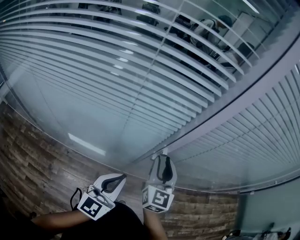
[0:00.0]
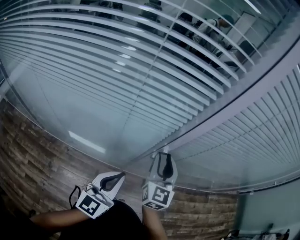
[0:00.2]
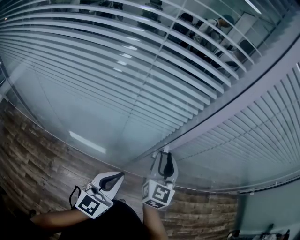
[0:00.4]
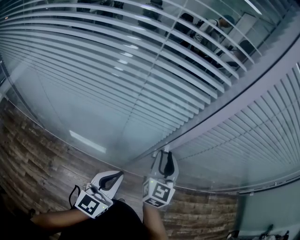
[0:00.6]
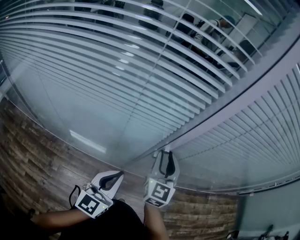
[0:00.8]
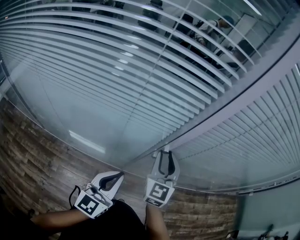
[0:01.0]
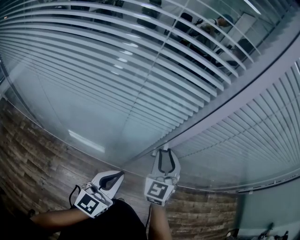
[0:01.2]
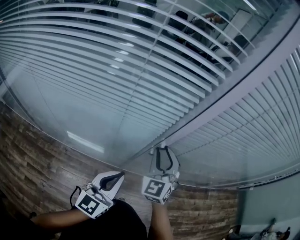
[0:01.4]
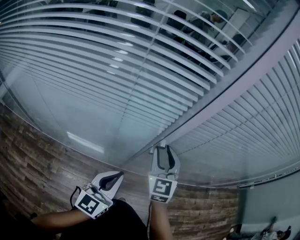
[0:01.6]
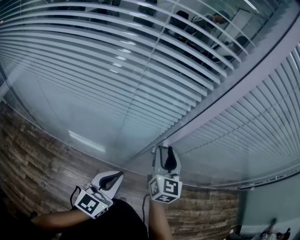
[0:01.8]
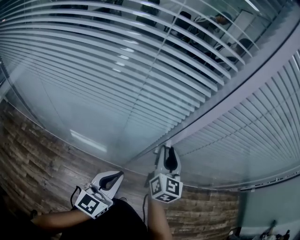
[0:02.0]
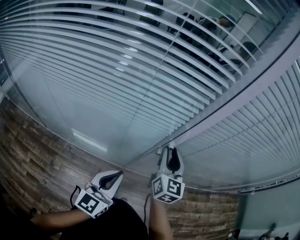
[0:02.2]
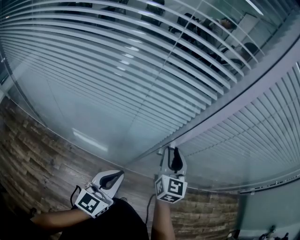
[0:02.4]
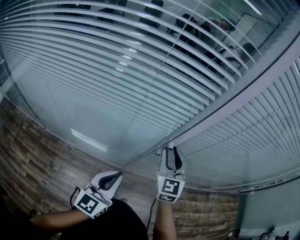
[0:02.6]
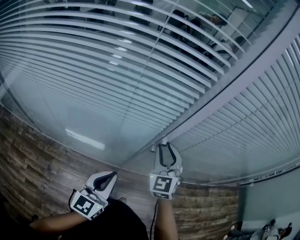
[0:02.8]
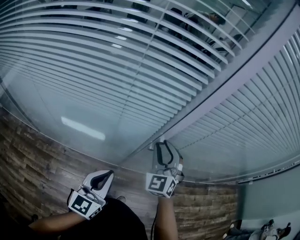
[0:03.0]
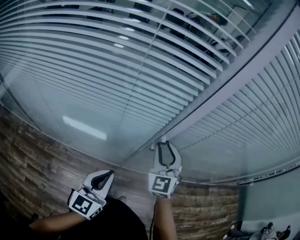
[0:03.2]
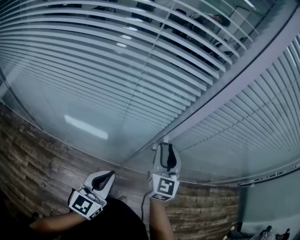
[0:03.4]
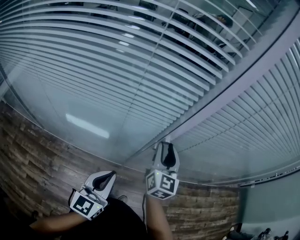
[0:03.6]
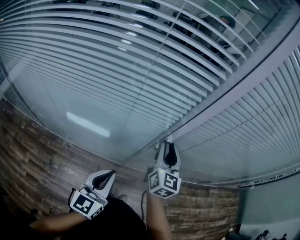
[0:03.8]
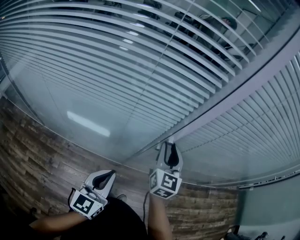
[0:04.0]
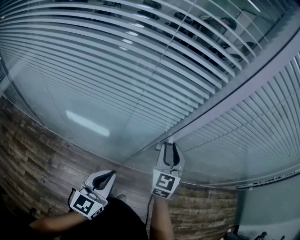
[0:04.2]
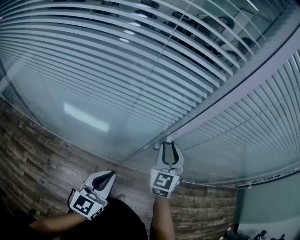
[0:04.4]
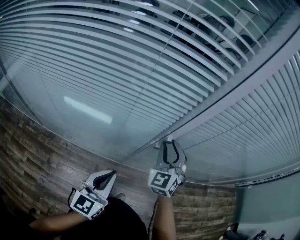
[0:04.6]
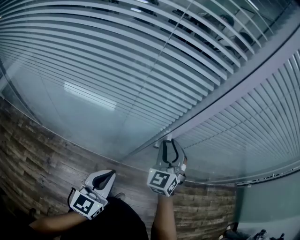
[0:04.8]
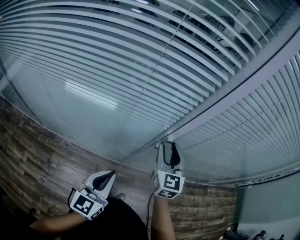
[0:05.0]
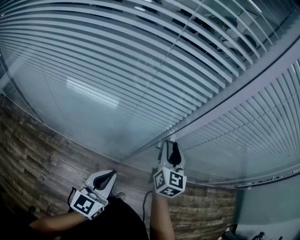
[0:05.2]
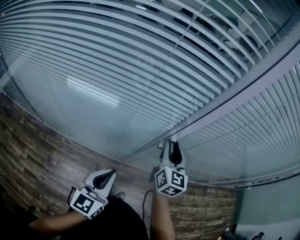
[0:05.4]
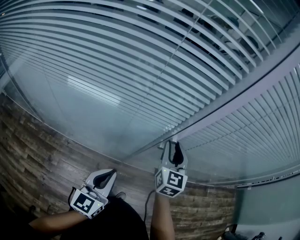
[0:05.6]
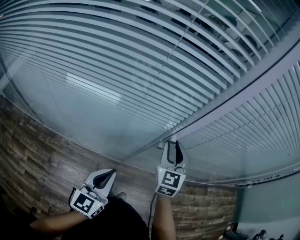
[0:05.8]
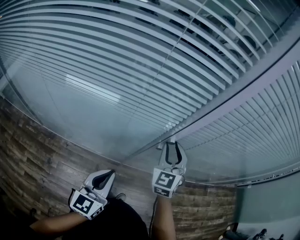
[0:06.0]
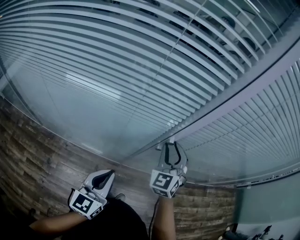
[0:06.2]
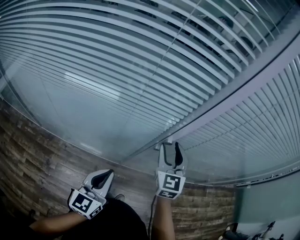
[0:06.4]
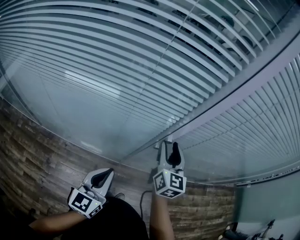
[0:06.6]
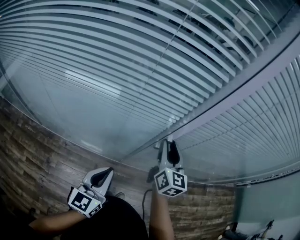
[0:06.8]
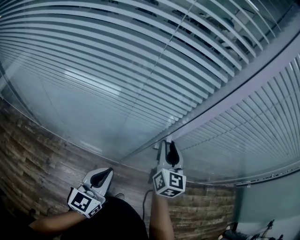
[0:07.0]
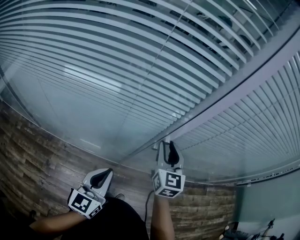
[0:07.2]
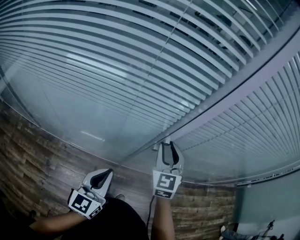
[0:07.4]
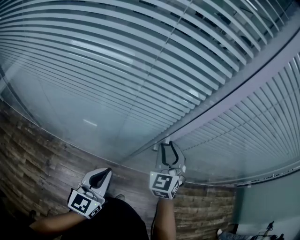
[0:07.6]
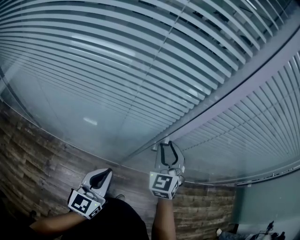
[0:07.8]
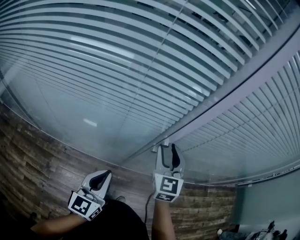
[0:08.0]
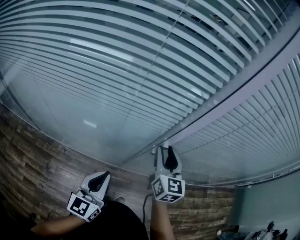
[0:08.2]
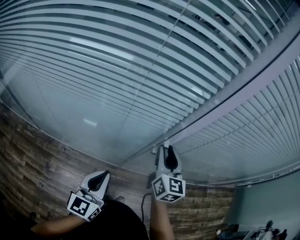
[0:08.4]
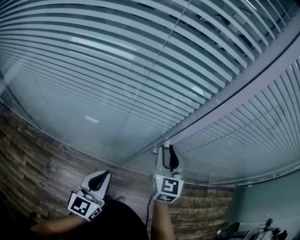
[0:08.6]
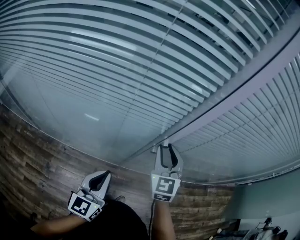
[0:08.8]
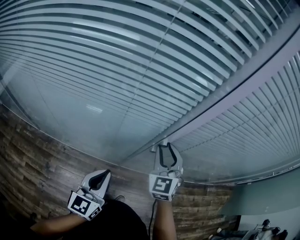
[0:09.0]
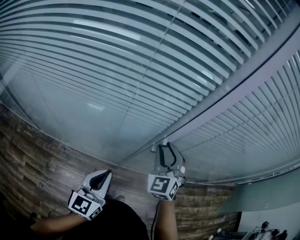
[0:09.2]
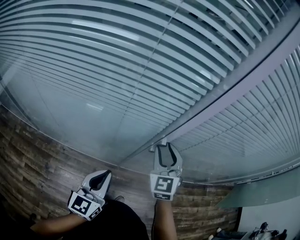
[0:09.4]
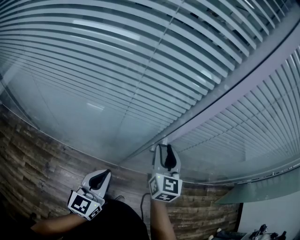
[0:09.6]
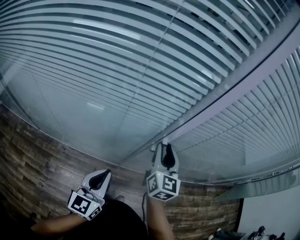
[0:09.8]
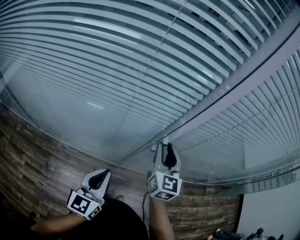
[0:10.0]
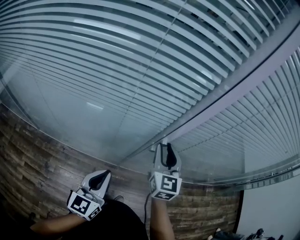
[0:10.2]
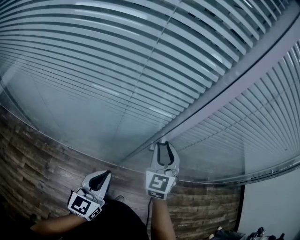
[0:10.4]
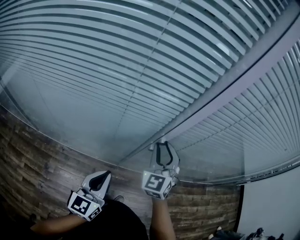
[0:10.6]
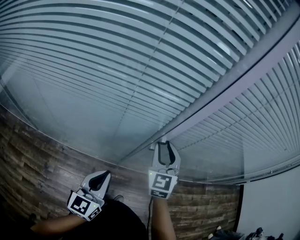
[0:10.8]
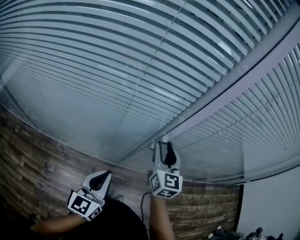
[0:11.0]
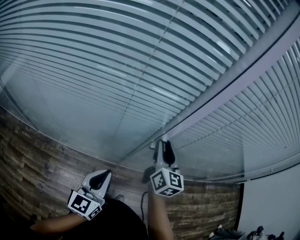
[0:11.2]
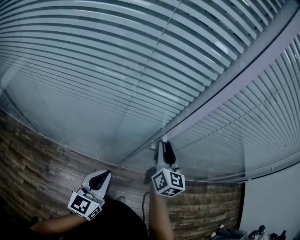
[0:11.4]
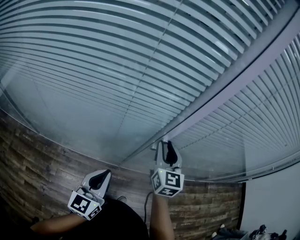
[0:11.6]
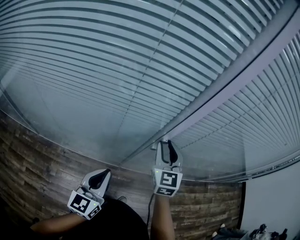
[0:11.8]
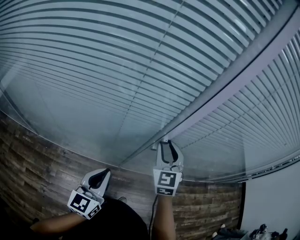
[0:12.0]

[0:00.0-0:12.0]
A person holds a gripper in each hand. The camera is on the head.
0:01.6 to 0:03.0: The right gripper swivels roughly 20 degrees.

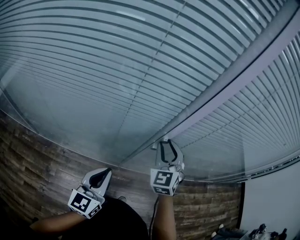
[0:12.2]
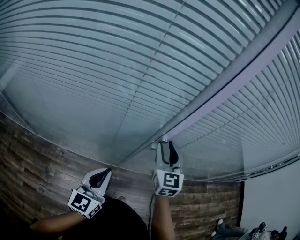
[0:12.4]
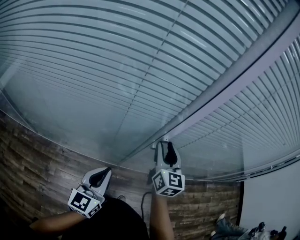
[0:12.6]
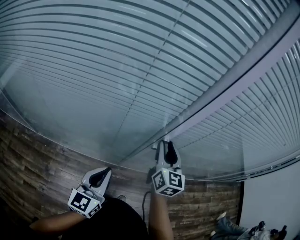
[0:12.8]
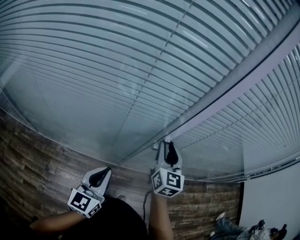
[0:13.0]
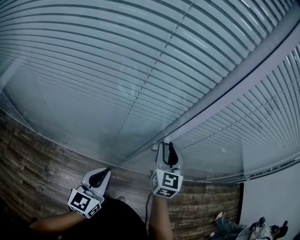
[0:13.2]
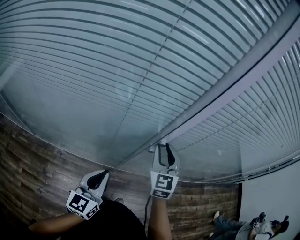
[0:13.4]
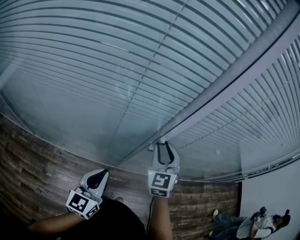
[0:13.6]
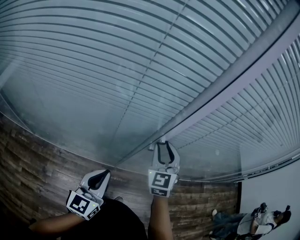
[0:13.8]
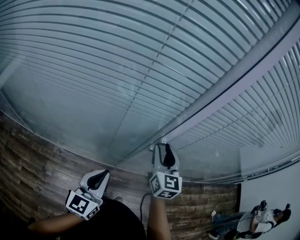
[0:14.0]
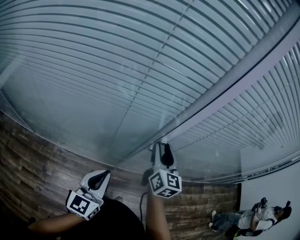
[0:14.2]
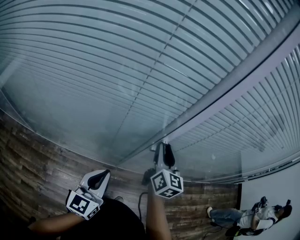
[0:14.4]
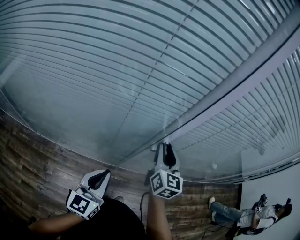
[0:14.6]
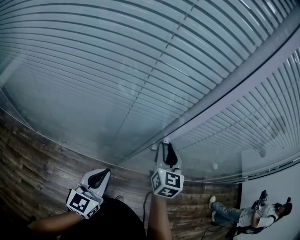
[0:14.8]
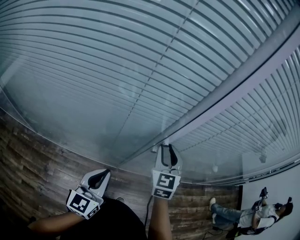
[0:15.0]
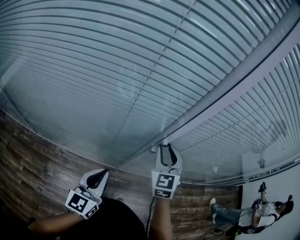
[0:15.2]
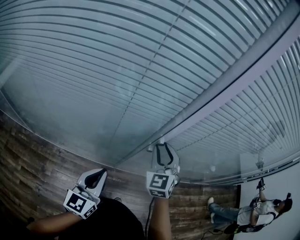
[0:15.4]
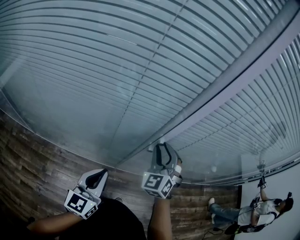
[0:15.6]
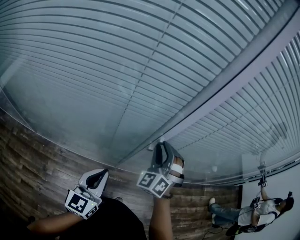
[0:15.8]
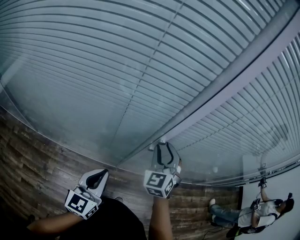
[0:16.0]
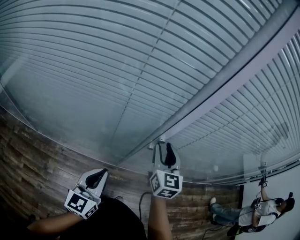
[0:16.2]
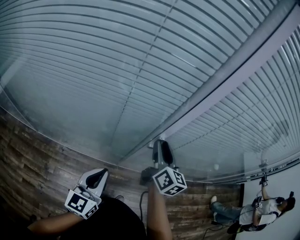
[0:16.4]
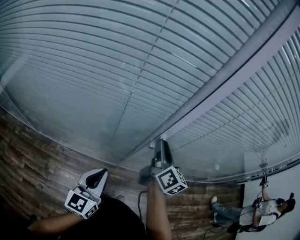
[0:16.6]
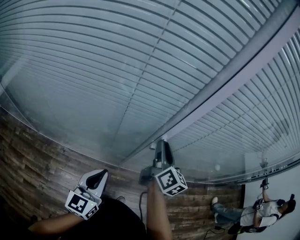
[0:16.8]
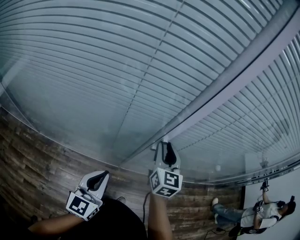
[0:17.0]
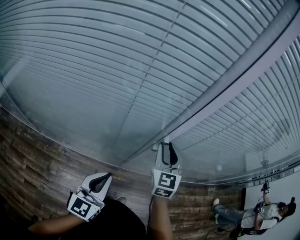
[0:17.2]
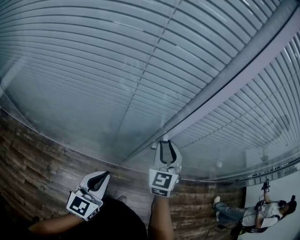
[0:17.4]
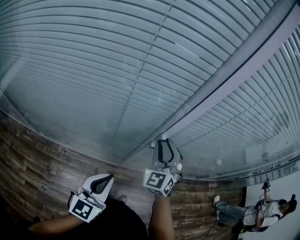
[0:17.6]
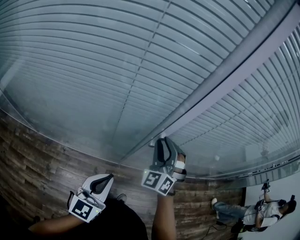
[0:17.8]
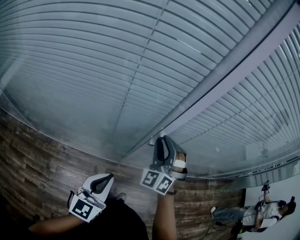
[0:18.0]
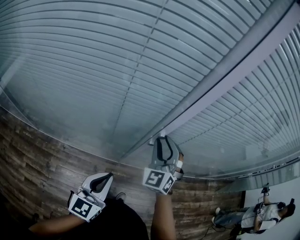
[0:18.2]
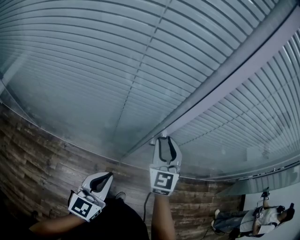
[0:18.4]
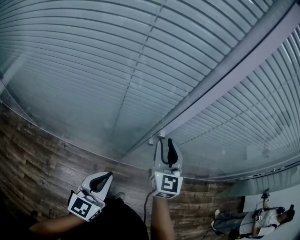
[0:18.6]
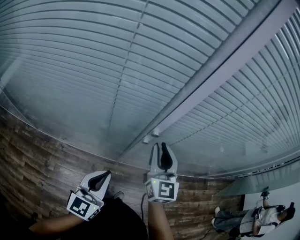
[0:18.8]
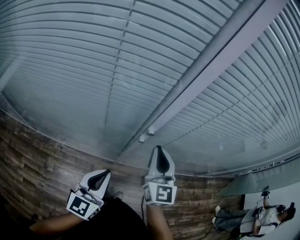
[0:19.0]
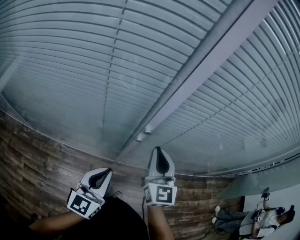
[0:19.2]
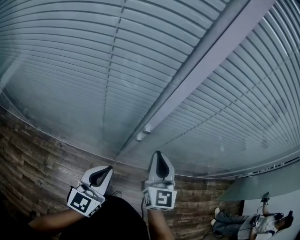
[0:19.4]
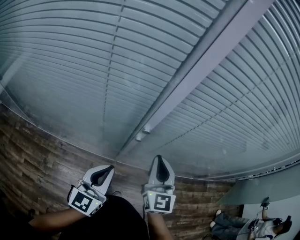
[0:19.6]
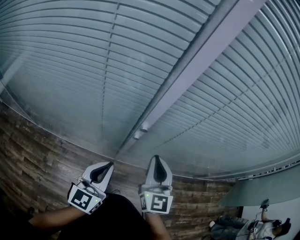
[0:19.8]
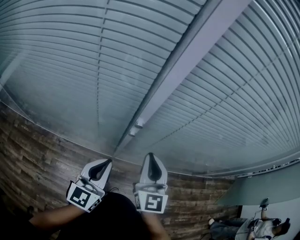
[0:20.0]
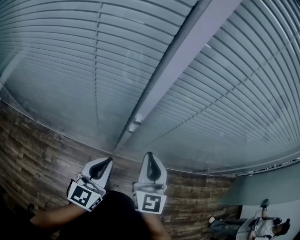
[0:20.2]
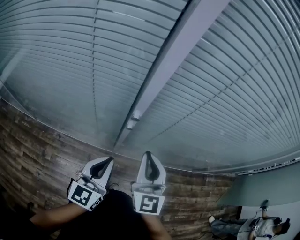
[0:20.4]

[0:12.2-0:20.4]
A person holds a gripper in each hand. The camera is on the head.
0:15.4 to 0:17.2: The right gripper swivels some 20 degrees.
0:17.2 to 0:18.8: The right gripper changes place by roughly 5 cm.
0:18.8 to 0:20.4: The right gripper travels backward and to the right by some 10 cm, and closes up. The left gripper goes roughly 10 cm to the right.

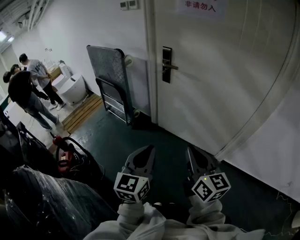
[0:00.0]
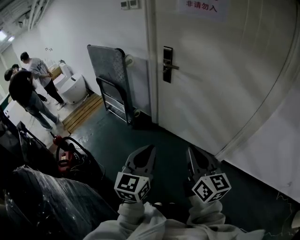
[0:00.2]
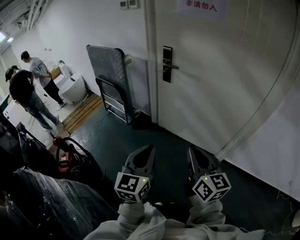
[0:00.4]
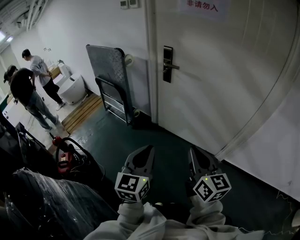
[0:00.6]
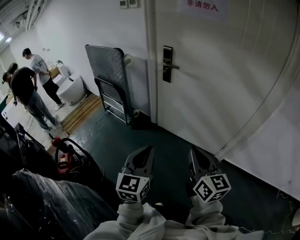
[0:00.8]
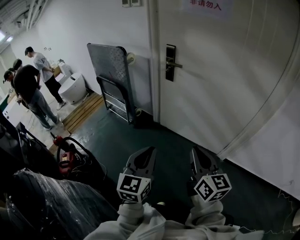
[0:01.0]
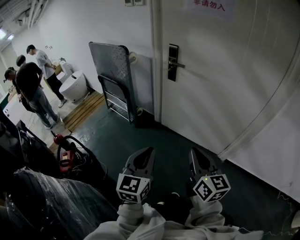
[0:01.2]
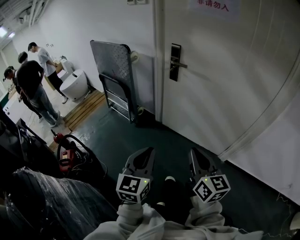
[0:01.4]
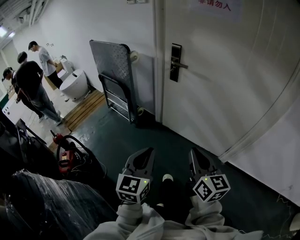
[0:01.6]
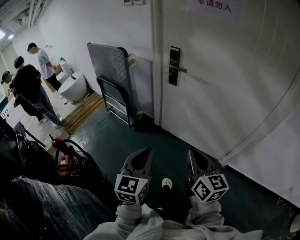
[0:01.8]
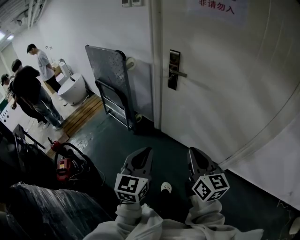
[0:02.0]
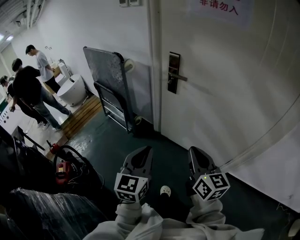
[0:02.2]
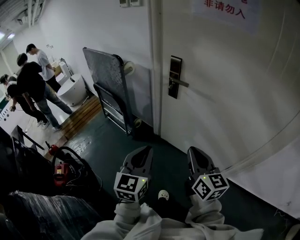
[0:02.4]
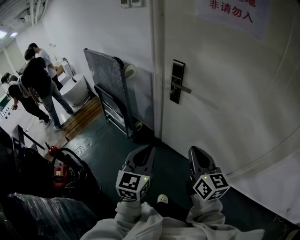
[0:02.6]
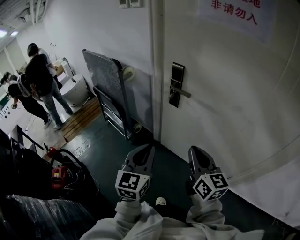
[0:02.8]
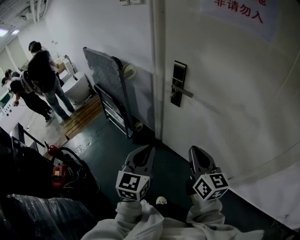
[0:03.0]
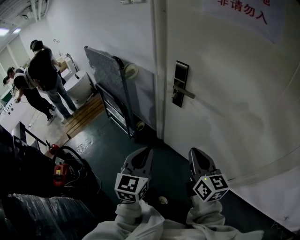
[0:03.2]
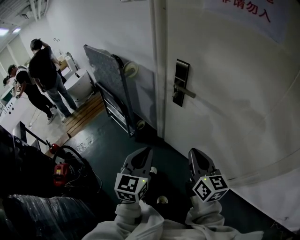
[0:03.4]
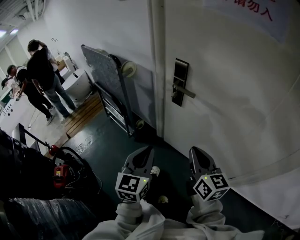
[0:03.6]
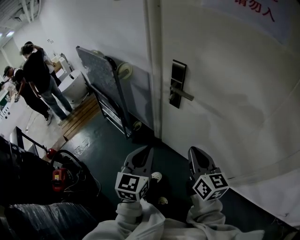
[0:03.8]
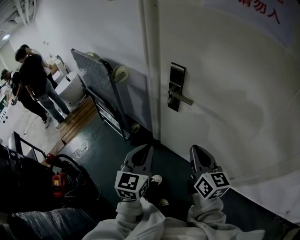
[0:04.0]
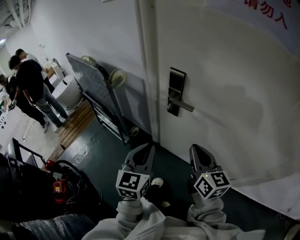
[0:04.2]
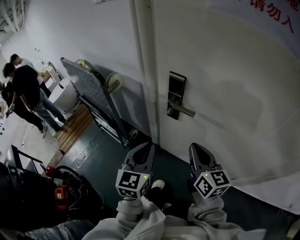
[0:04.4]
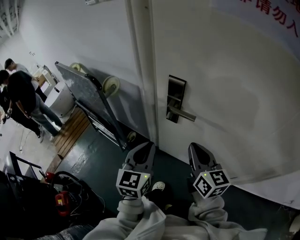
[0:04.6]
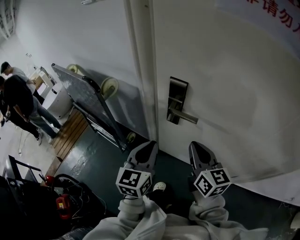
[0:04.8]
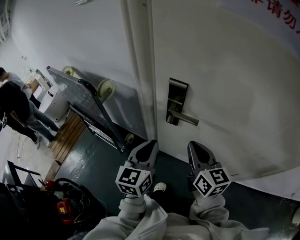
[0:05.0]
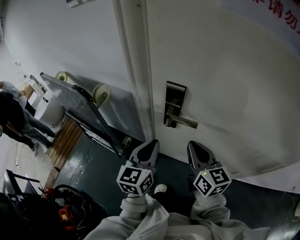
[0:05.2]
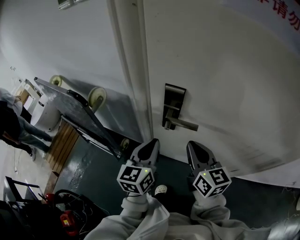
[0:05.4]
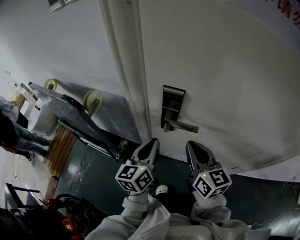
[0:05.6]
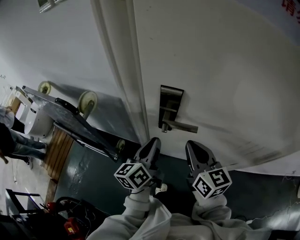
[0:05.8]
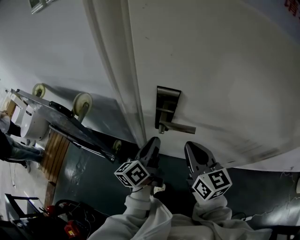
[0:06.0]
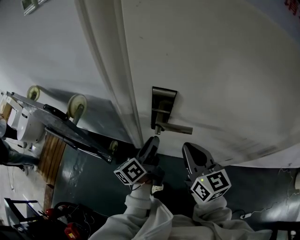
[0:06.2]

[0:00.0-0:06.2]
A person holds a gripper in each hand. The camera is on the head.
0:00.0 to 0:01.6: The right gripper shifts by about 5 cm. Meanwhile the left gripper shifts by roughly 5 cm.
0:01.6 to 0:03.2: The two grippers go approximately 30 cm forward.
0:03.2 to 0:04.6: Both grippers move forward, approximately 20 cm.
0:04.6 to 0:06.2: The right gripper heads forward, covering some 5 cm. The left gripper travels forward and downward by roughly 15 cm, twists about 60 degrees counterclockwise, seen from behind, and opens up.
